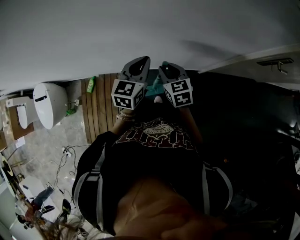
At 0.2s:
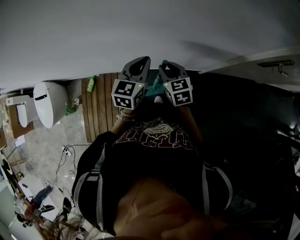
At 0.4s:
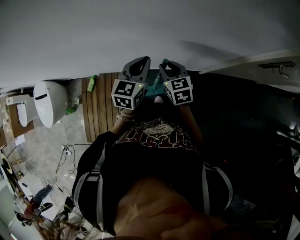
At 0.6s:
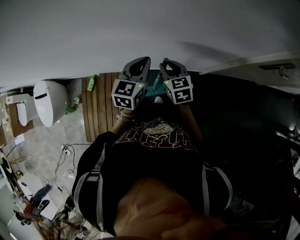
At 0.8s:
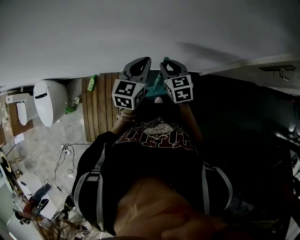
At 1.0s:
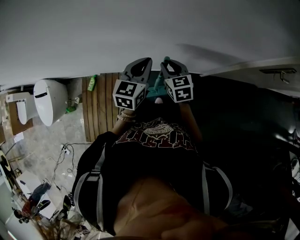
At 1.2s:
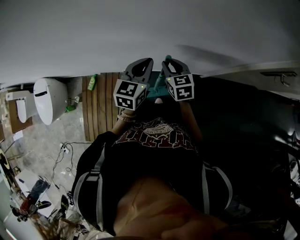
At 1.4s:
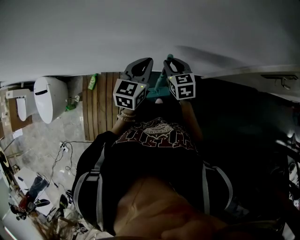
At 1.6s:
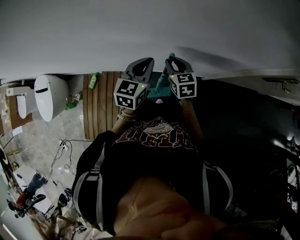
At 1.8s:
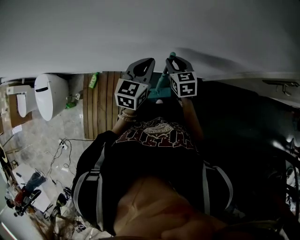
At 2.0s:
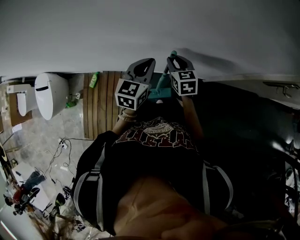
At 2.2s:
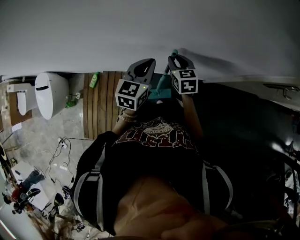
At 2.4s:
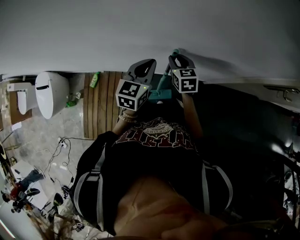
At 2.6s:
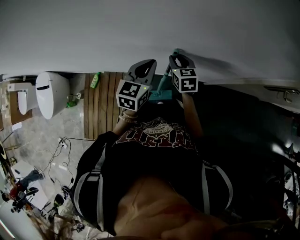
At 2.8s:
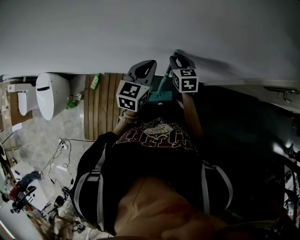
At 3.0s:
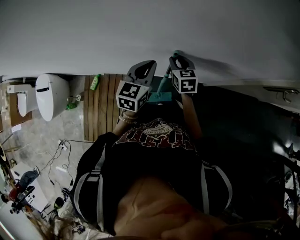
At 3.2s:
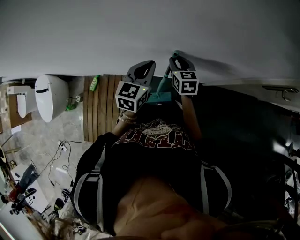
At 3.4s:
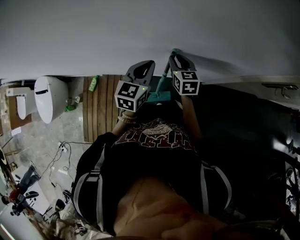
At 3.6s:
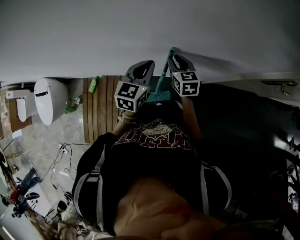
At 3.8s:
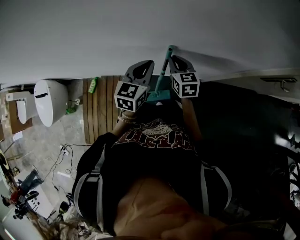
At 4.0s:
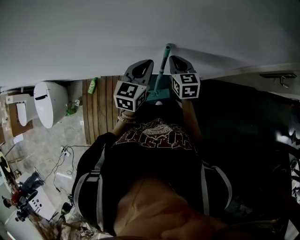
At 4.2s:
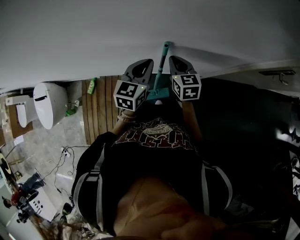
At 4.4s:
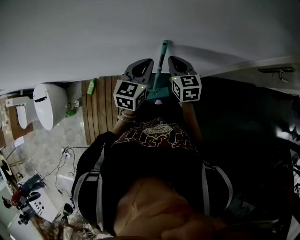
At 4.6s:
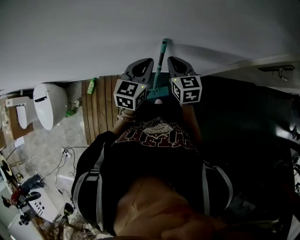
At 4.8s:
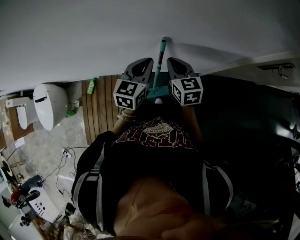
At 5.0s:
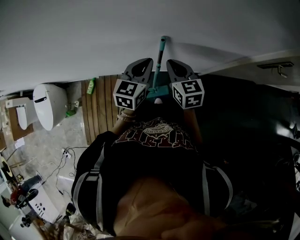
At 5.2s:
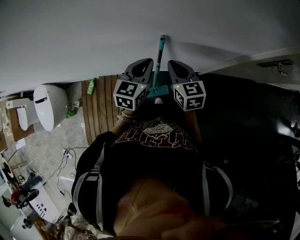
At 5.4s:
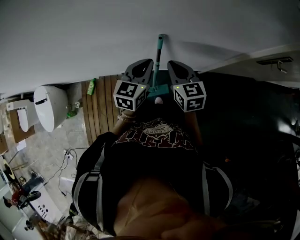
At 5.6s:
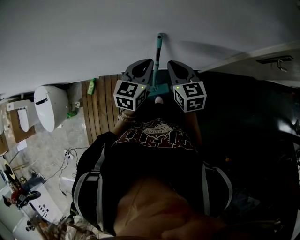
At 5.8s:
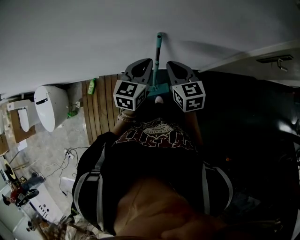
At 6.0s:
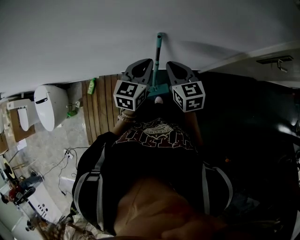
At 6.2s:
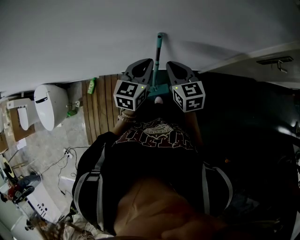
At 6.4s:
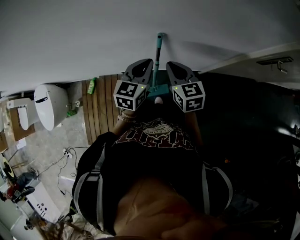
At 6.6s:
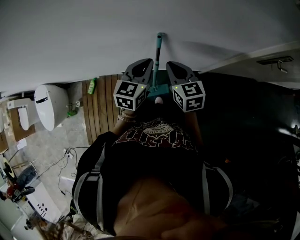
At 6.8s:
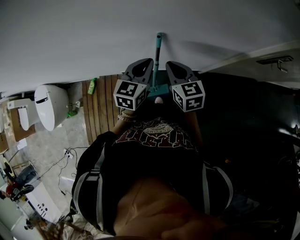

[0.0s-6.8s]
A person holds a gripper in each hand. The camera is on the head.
0.0s to 1.4s: The right gripper goes roughly 5 cm forward.
1.4s to 2.8s: The right gripper is displaced forward by roughly 5 cm.
2.8s to 4.0s: The right gripper ends up some 5 cm from where it was, and closes.
4.0s to 5.4s: The right gripper heads backward and upward, covering about 10 cm.
5.4s to 6.8s: The two grippers keep their place.

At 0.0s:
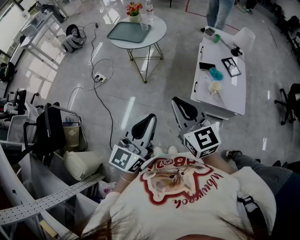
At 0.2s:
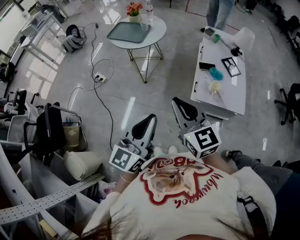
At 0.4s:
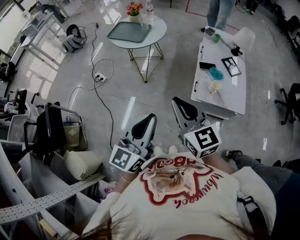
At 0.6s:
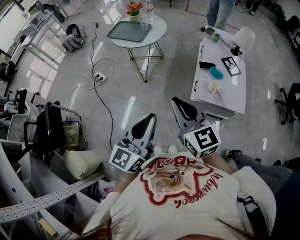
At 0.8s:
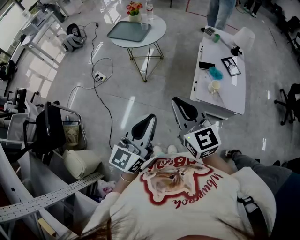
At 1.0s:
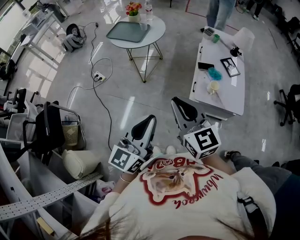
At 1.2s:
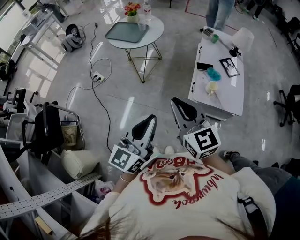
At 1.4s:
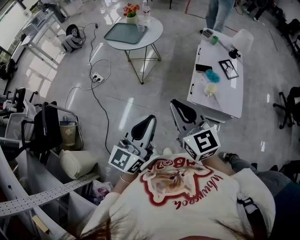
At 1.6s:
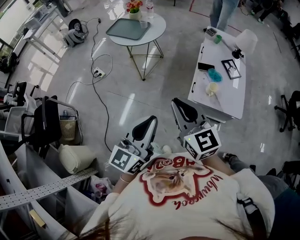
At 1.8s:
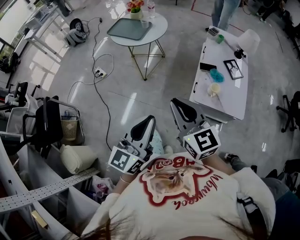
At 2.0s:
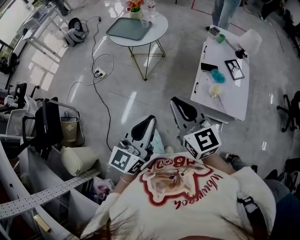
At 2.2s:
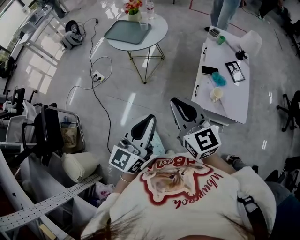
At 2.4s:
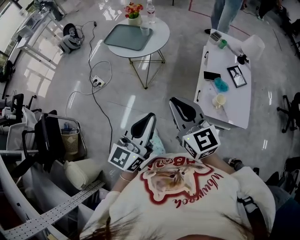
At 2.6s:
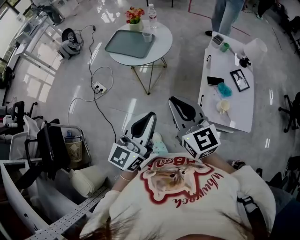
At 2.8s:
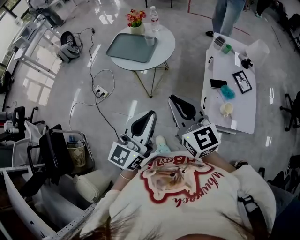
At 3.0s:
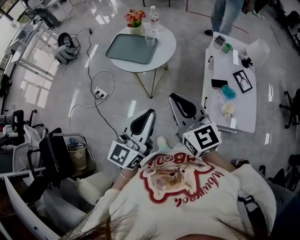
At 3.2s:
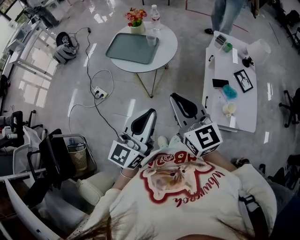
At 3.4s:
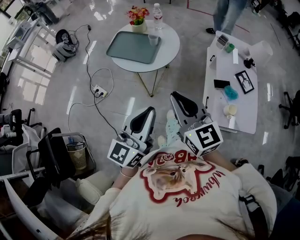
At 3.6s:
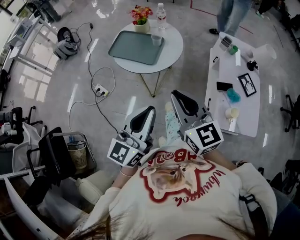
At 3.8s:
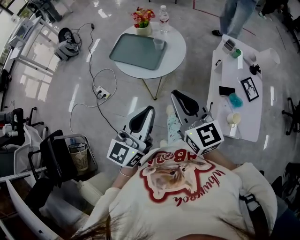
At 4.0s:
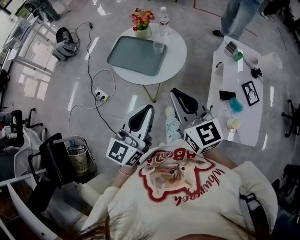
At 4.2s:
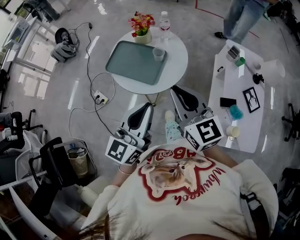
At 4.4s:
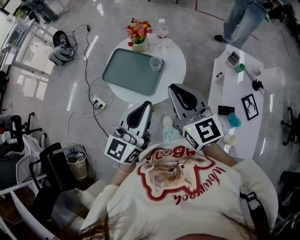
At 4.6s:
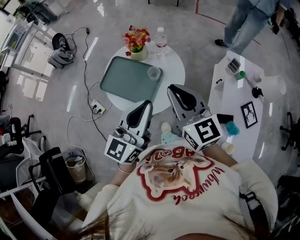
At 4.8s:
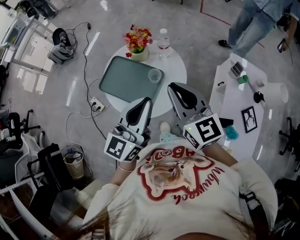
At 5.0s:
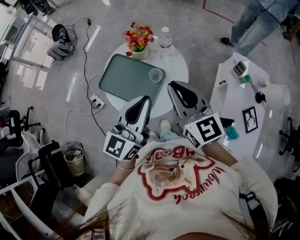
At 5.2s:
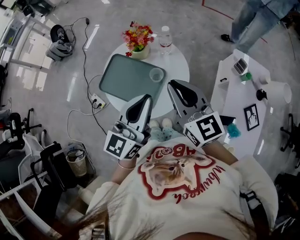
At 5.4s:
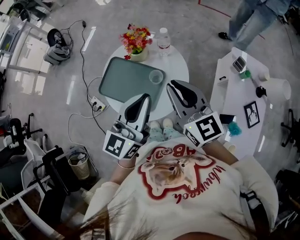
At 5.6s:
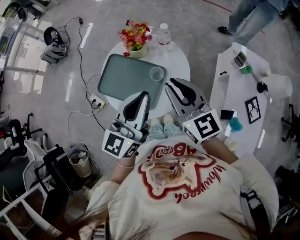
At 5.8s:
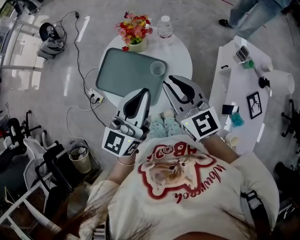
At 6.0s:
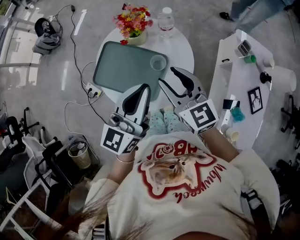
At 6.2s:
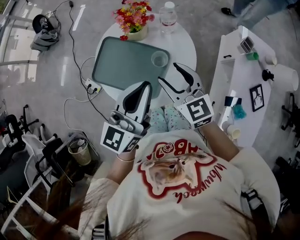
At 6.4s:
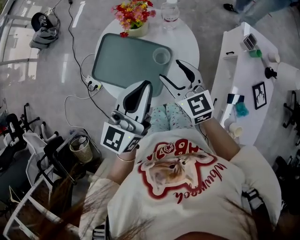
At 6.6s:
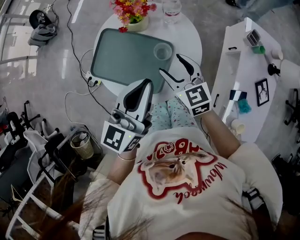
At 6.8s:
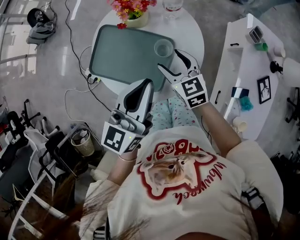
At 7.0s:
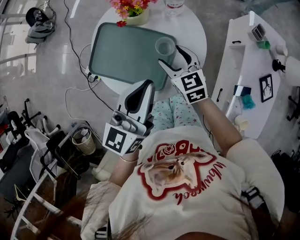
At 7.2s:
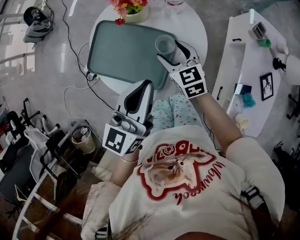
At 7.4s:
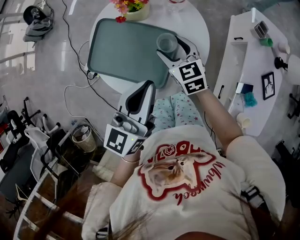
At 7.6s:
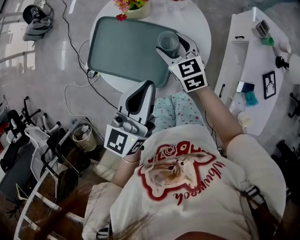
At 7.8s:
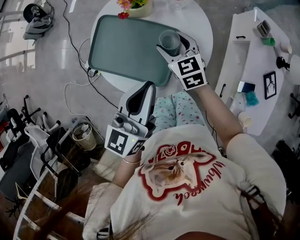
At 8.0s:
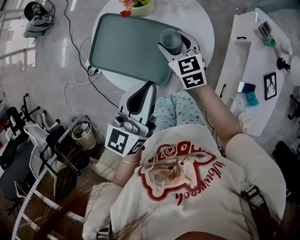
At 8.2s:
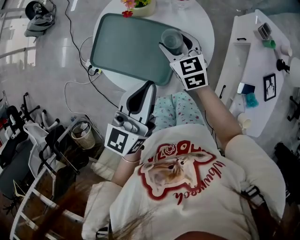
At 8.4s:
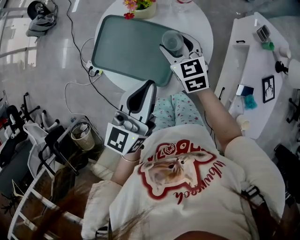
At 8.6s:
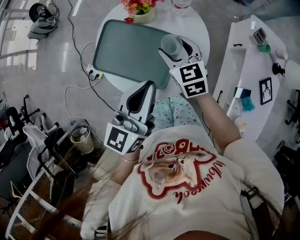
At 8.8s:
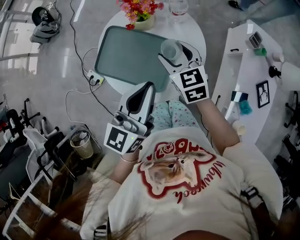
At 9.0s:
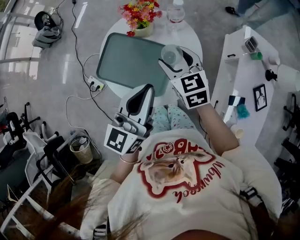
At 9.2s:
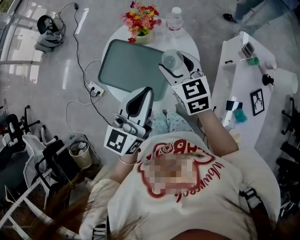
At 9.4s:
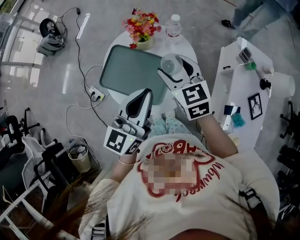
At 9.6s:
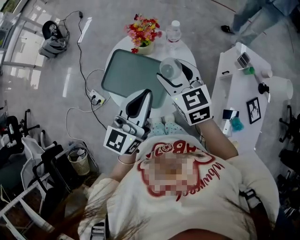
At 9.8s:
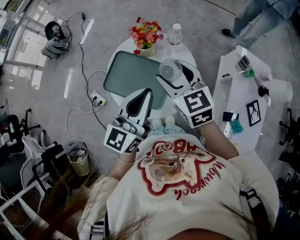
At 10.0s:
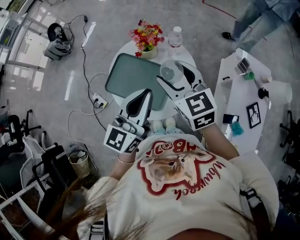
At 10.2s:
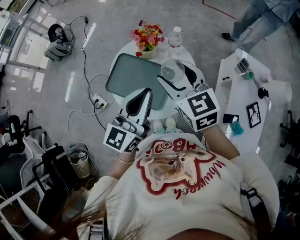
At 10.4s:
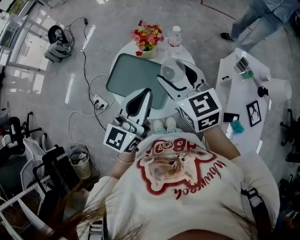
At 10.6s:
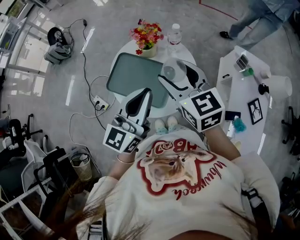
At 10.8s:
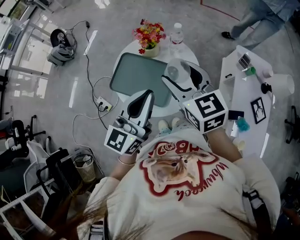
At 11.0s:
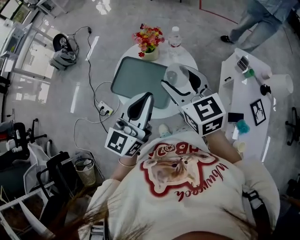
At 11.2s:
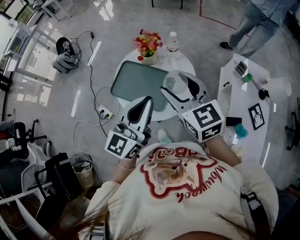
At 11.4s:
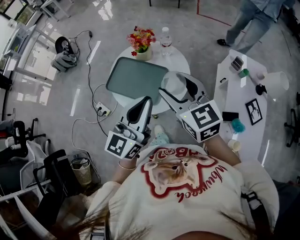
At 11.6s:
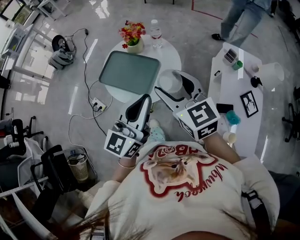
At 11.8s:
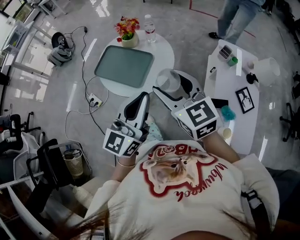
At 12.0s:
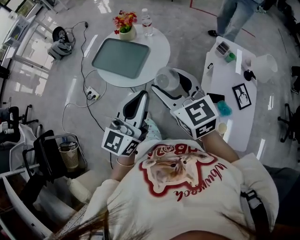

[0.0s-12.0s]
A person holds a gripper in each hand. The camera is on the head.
0.0s to 1.6s: The left gripper moves about 5 cm.
1.6s to 3.0s: The two grippers go about 30 cm forward and to the left.
3.0s to 4.4s: Both grippers travel together forward, approximately 30 cm.
4.4s to 6.0s: The right gripper shifts about 20 cm forward and downward, and opens up. Meanwhile the left gripper heads forward, covering some 15 cm.
6.0s to 7.6s: The left gripper moves downward, approximately 10 cm, while the right gripper goes approximately 20 cm downward, and opens its fingers.
7.6s to 9.0s: The left gripper moves upward, about 5 cm. The right gripper shifts approximately 10 cm upward.
9.0s to 10.4s: The left gripper moves upward, approximately 5 cm, while the right gripper shifts roughly 15 cm upward.
10.4s to 12.0s: Both grippers move backward and to the right, roughly 25 cm.

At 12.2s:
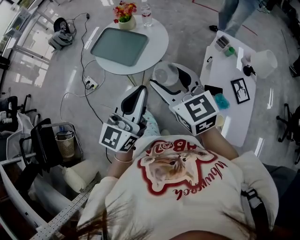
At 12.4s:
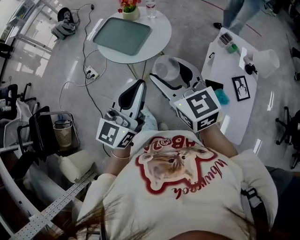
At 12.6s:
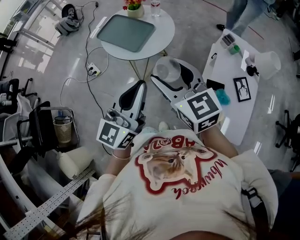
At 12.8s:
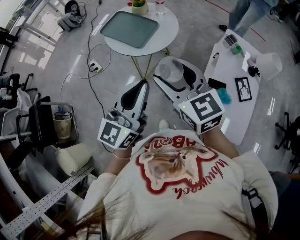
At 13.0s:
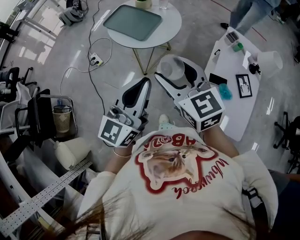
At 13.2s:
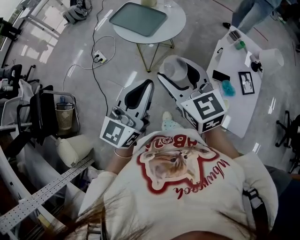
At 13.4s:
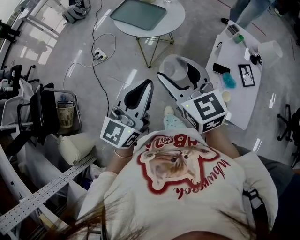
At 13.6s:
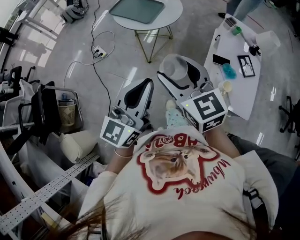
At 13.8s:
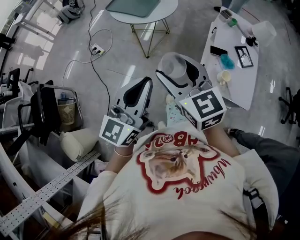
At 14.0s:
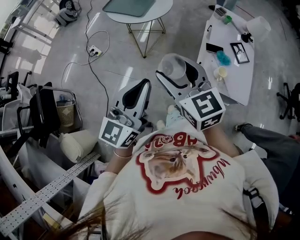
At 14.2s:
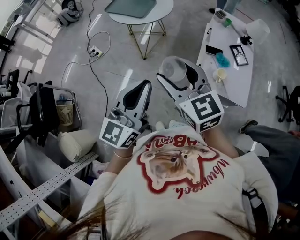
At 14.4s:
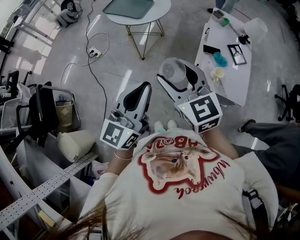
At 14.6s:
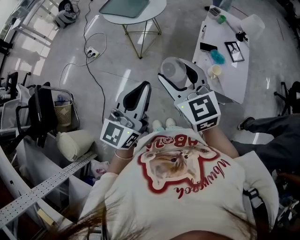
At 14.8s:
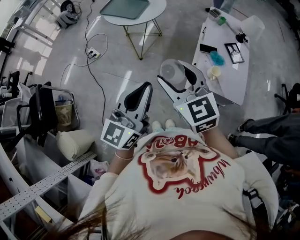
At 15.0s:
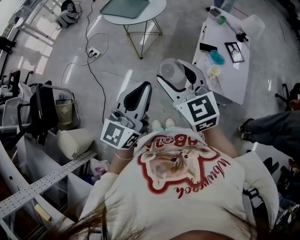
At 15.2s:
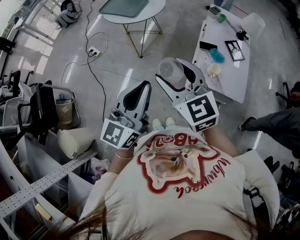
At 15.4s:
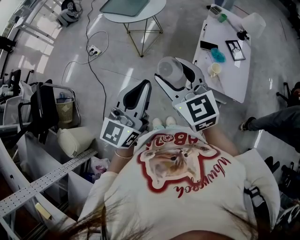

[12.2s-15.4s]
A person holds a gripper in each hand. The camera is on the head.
12.2s to 13.8s: The two grippers go about 30 cm backward.
13.8s to 15.4s: The two grippers go some 10 cm backward and to the right.

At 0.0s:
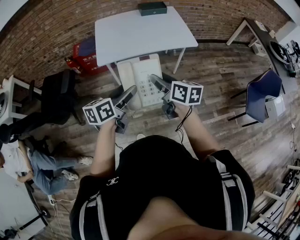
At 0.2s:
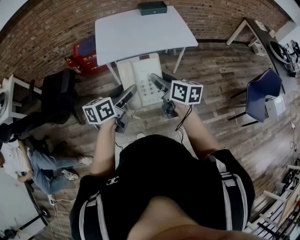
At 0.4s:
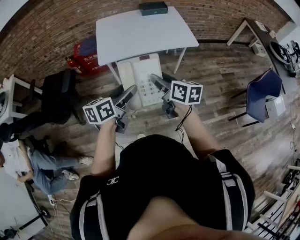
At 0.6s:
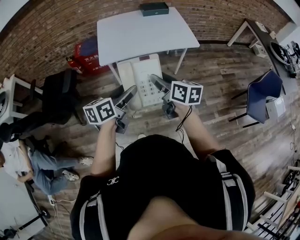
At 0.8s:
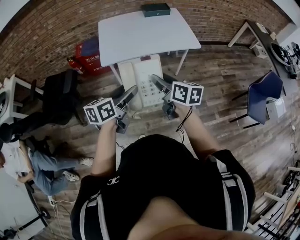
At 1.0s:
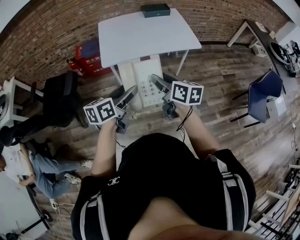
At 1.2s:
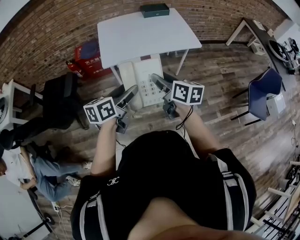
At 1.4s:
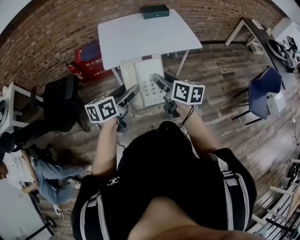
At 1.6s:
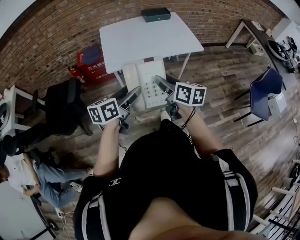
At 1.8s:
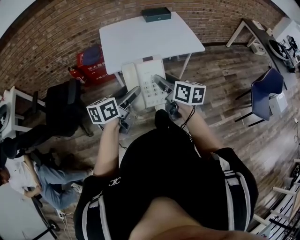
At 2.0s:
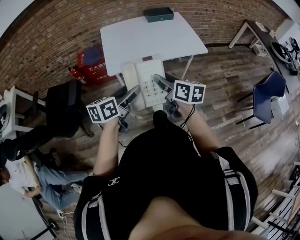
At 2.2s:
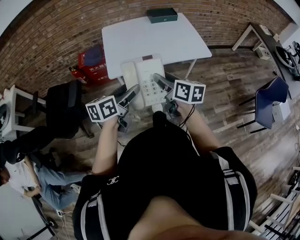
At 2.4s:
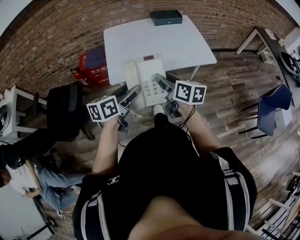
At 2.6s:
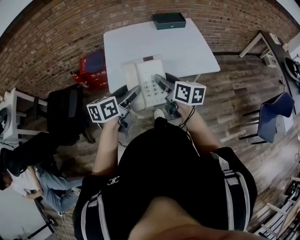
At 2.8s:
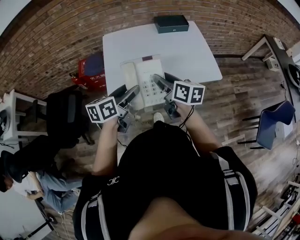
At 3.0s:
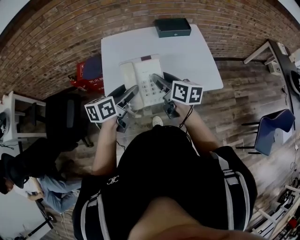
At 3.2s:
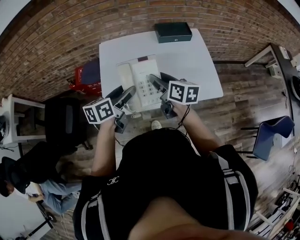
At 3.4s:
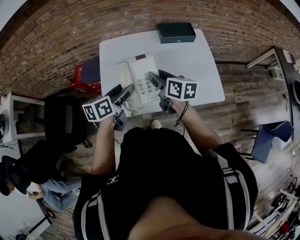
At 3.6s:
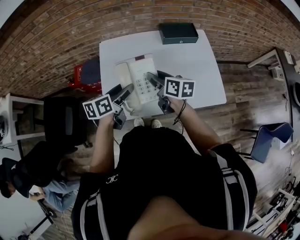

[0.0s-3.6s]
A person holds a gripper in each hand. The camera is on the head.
0.0s to 1.8s: Both grippers travel together to the left, some 10 cm.
1.8s to 3.6s: The pair of grippers is taken forward, some 50 cm.
